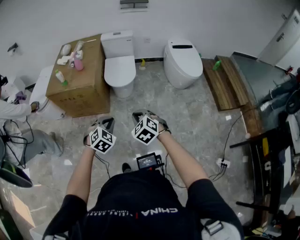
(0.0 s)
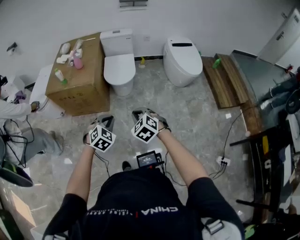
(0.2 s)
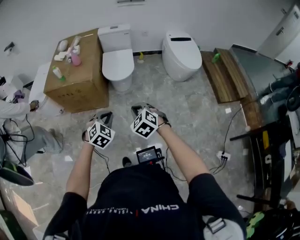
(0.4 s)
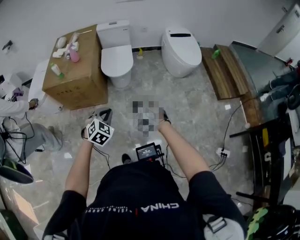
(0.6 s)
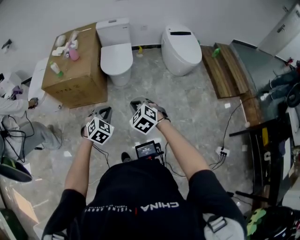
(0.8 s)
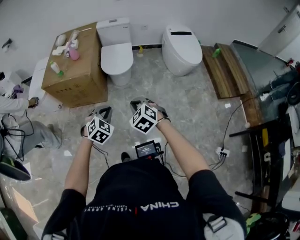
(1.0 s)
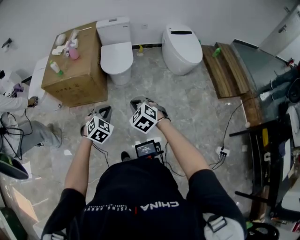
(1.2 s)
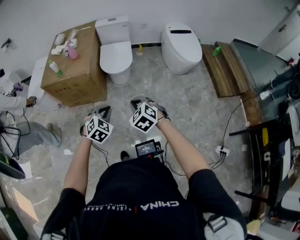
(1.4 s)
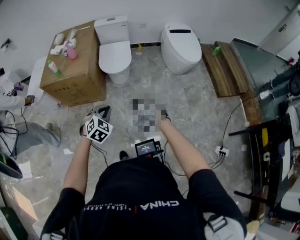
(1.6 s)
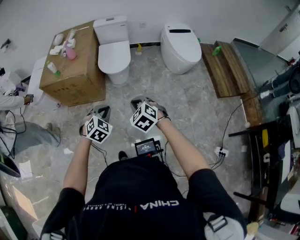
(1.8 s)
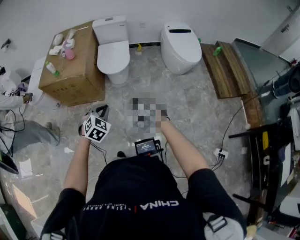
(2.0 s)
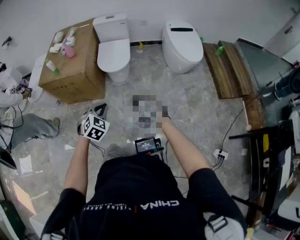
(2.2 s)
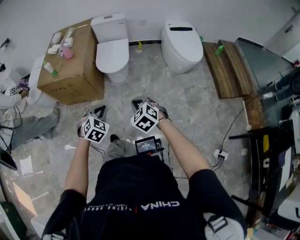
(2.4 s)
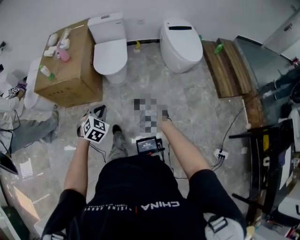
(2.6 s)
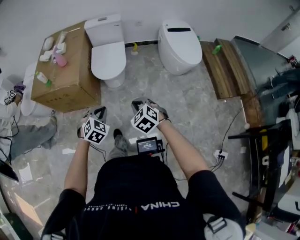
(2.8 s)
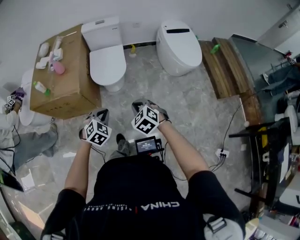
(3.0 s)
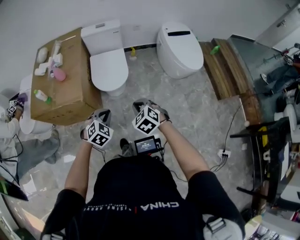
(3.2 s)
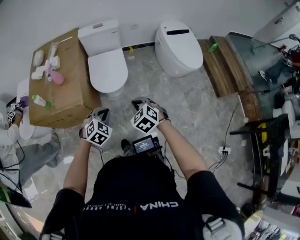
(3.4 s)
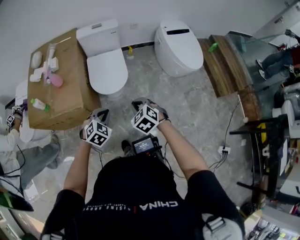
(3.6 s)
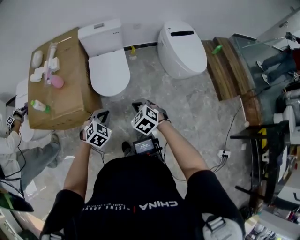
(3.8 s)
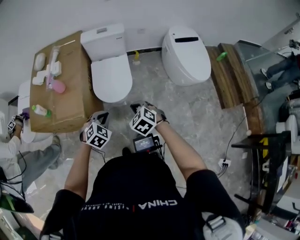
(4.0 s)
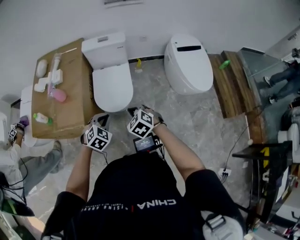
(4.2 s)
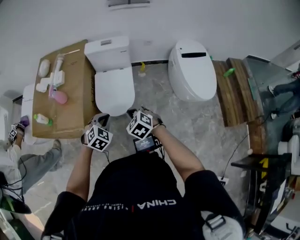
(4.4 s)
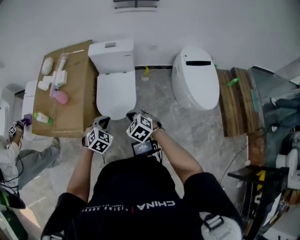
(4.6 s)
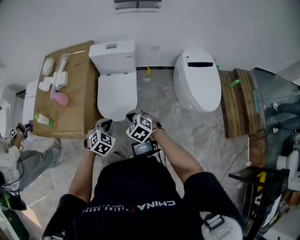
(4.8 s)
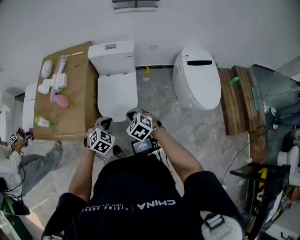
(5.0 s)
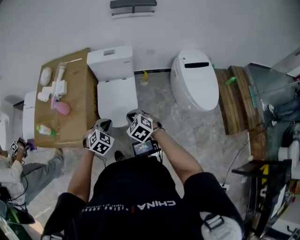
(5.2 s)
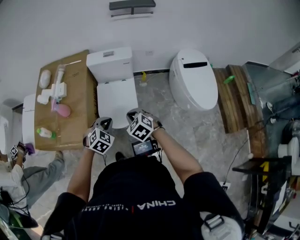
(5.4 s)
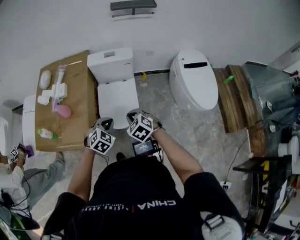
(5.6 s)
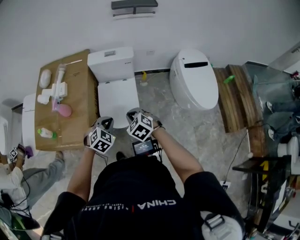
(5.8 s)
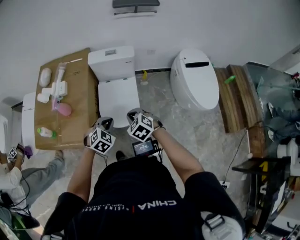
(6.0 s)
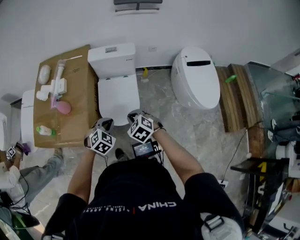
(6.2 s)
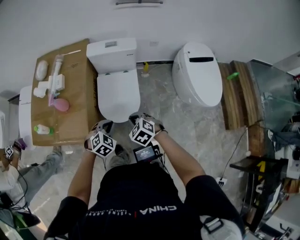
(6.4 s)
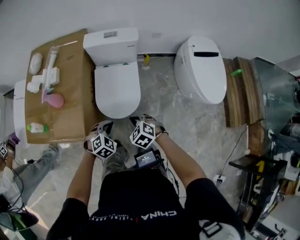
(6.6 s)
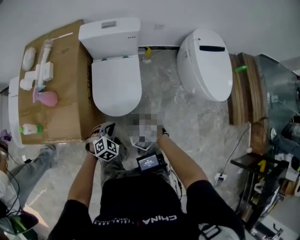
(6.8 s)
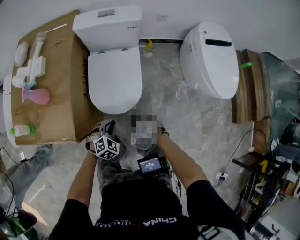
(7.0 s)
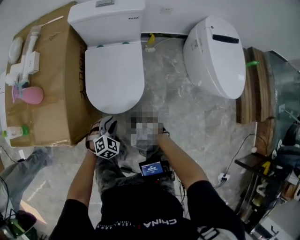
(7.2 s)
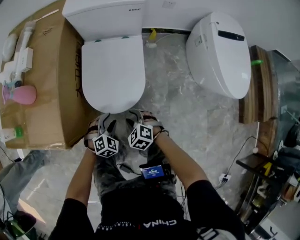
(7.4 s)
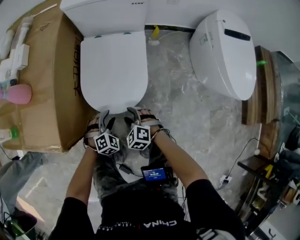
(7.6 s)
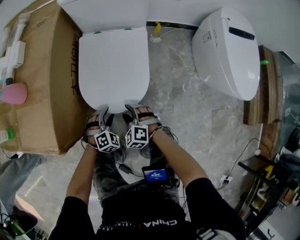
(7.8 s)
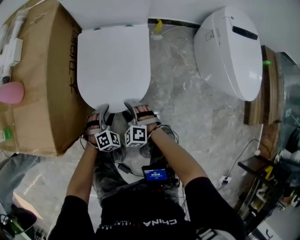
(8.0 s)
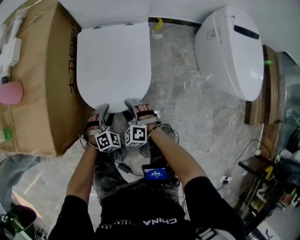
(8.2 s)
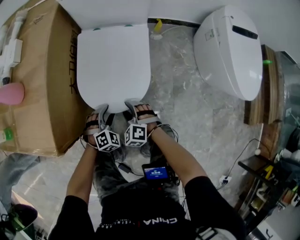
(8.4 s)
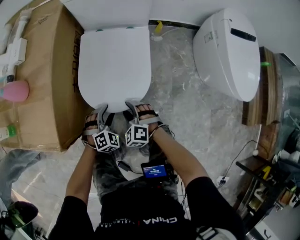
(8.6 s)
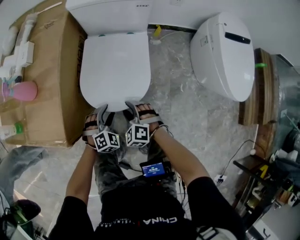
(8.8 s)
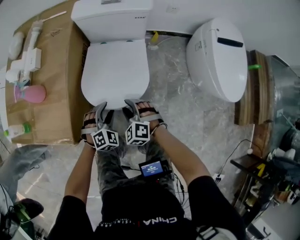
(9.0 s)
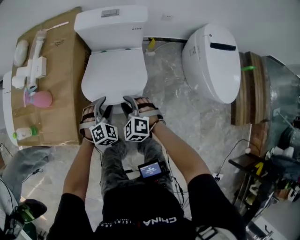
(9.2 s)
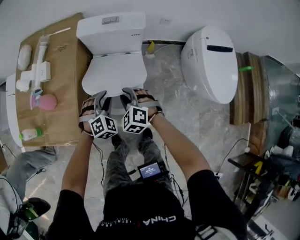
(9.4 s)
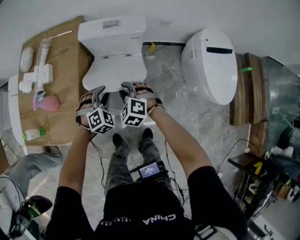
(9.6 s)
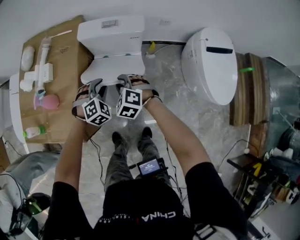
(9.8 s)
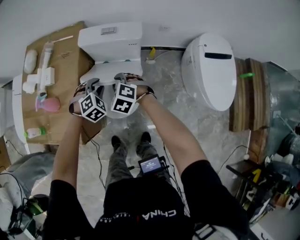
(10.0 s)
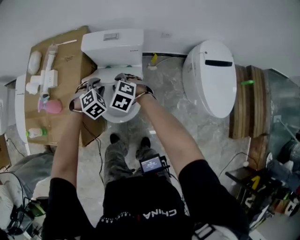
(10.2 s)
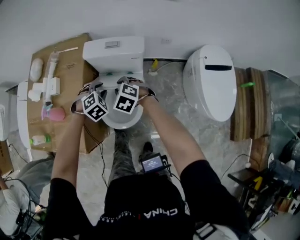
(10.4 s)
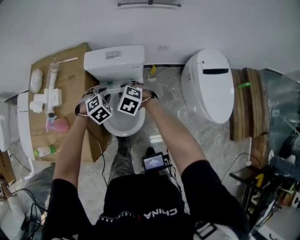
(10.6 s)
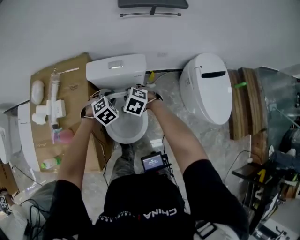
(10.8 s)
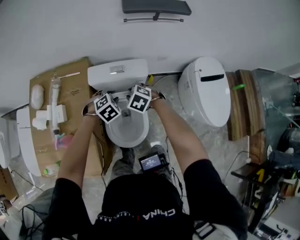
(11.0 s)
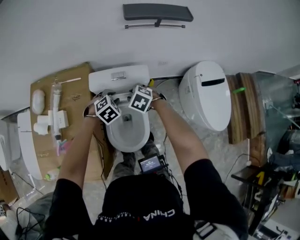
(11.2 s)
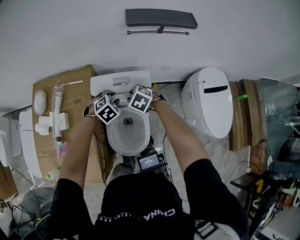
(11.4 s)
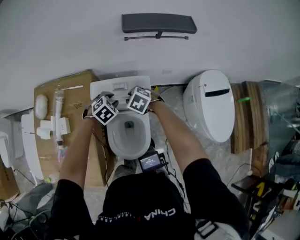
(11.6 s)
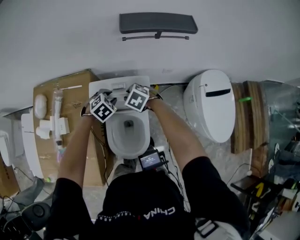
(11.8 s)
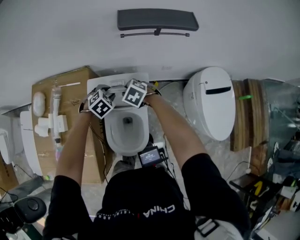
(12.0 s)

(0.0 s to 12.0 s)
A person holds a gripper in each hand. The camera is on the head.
0.0 s - 1.6 s: The grippers move only a little.
1.6 s - 3.0 s: The grippers both shift forward by some 20 cm.
3.0 s - 4.4 s: Both grippers travel together forward, about 30 cm.
4.4 s - 6.0 s: Both grippers travel together forward, about 10 cm.
6.0 s - 7.6 s: Both grippers move downward, some 40 cm. The left gripper opens its fingers; the right gripper opens up.
7.6 s - 9.0 s: Both grippers travel together upward, about 15 cm.
9.0 s - 10.4 s: The left gripper moves forward and upward, roughly 30 cm, and closes. The right gripper goes some 30 cm upward and forward.
10.4 s - 12.0 s: Both grippers travel together forward, about 20 cm.

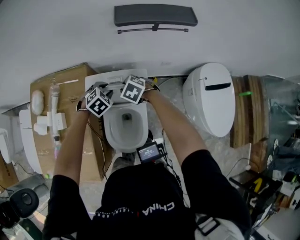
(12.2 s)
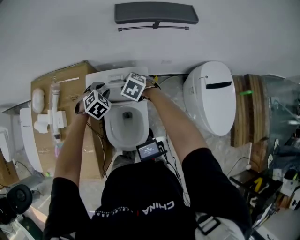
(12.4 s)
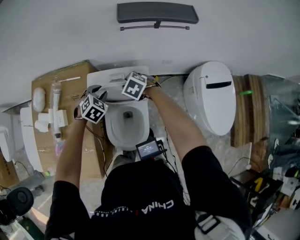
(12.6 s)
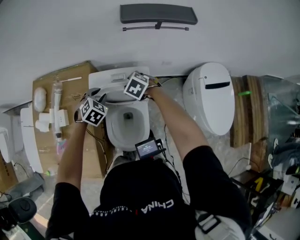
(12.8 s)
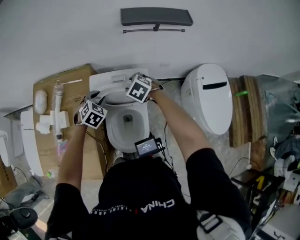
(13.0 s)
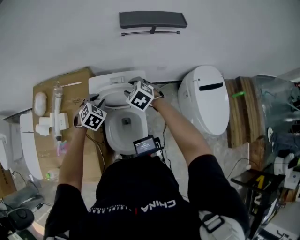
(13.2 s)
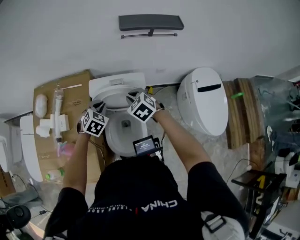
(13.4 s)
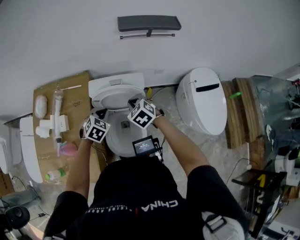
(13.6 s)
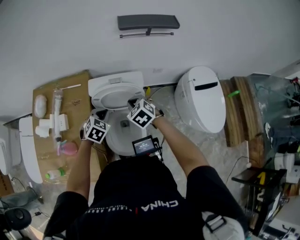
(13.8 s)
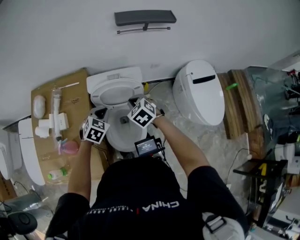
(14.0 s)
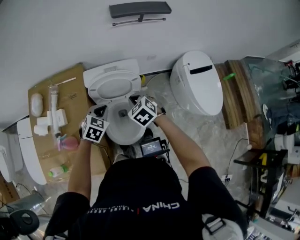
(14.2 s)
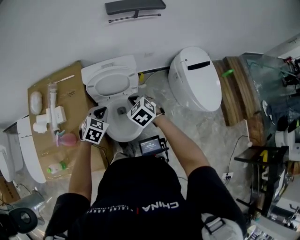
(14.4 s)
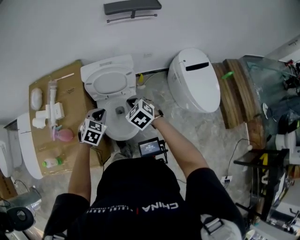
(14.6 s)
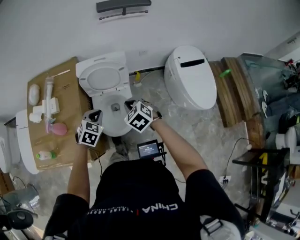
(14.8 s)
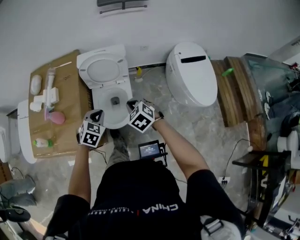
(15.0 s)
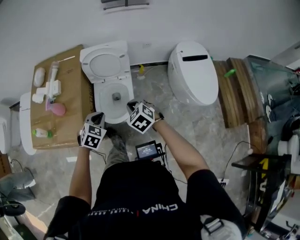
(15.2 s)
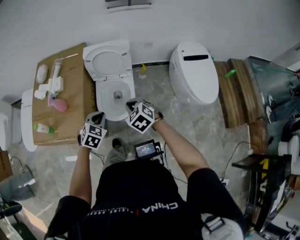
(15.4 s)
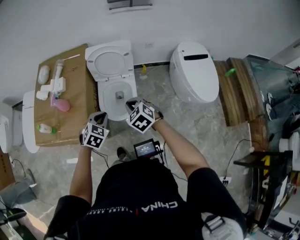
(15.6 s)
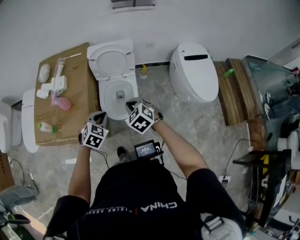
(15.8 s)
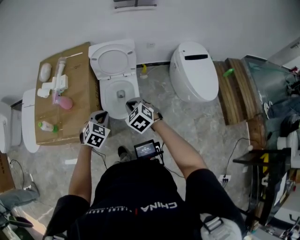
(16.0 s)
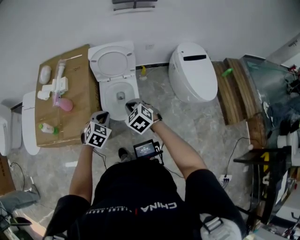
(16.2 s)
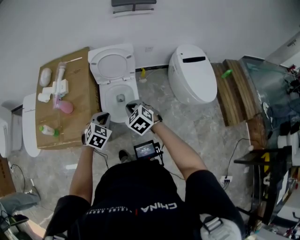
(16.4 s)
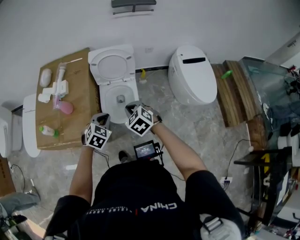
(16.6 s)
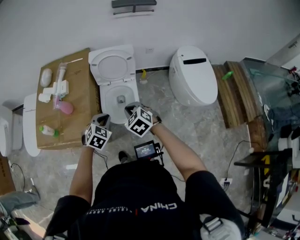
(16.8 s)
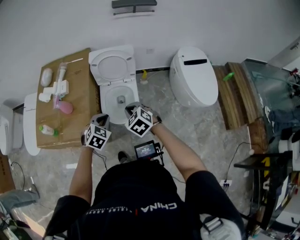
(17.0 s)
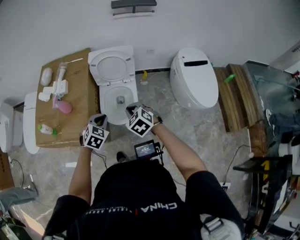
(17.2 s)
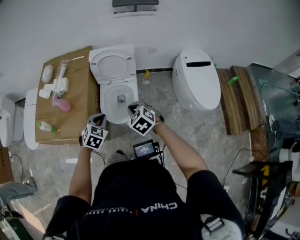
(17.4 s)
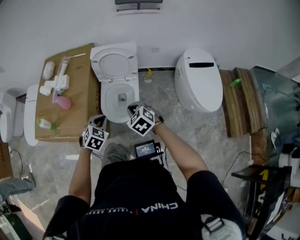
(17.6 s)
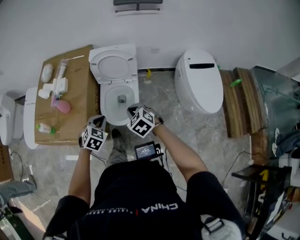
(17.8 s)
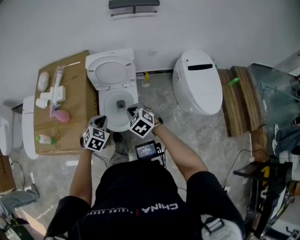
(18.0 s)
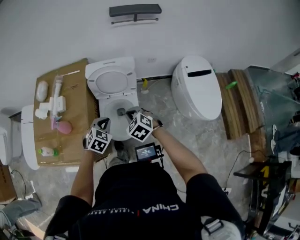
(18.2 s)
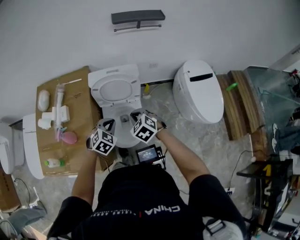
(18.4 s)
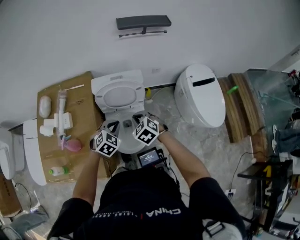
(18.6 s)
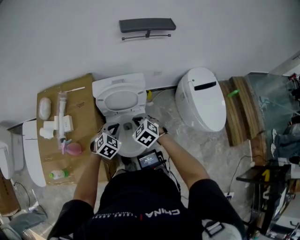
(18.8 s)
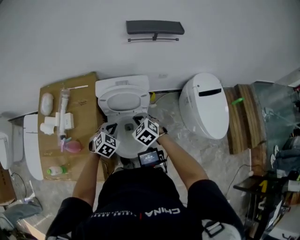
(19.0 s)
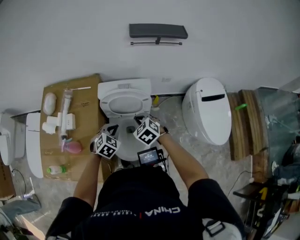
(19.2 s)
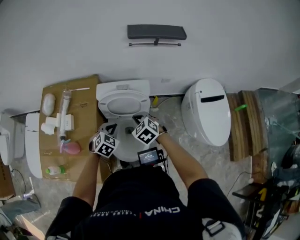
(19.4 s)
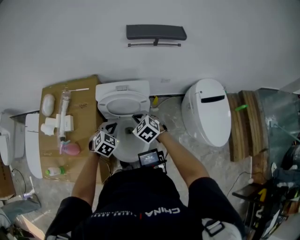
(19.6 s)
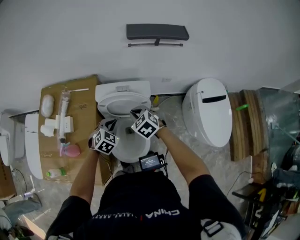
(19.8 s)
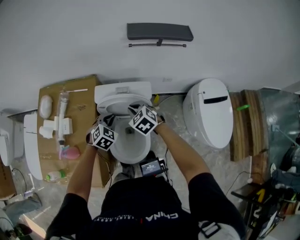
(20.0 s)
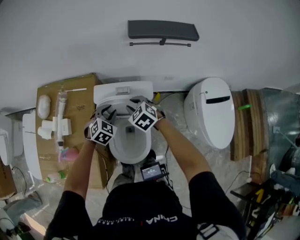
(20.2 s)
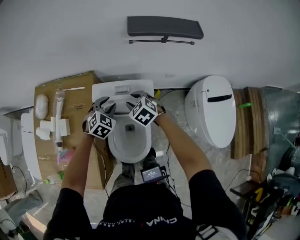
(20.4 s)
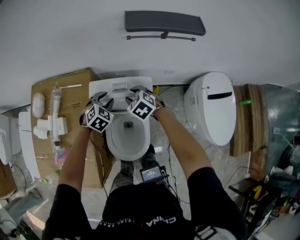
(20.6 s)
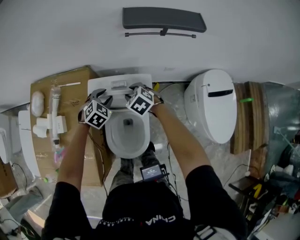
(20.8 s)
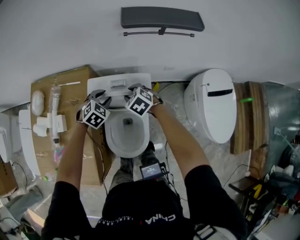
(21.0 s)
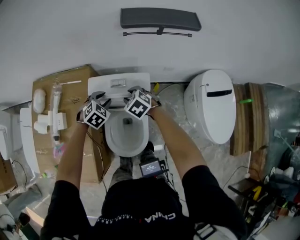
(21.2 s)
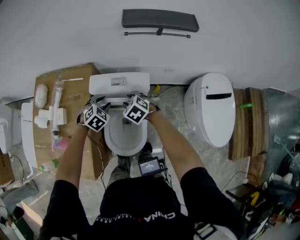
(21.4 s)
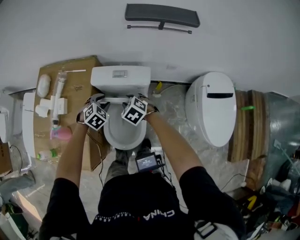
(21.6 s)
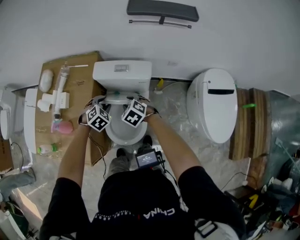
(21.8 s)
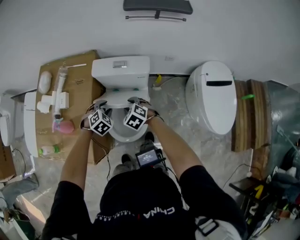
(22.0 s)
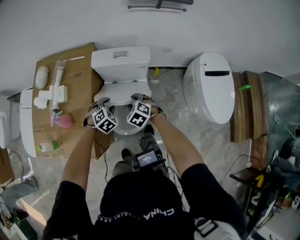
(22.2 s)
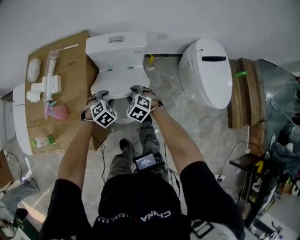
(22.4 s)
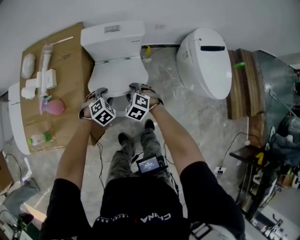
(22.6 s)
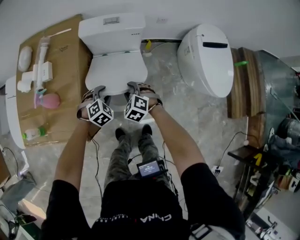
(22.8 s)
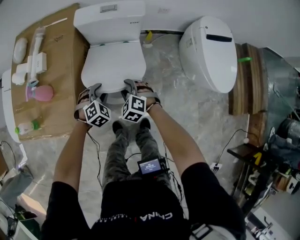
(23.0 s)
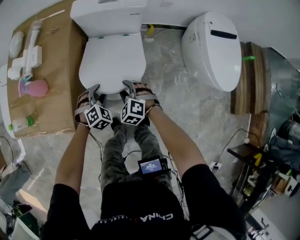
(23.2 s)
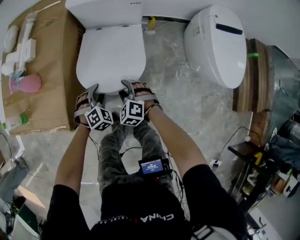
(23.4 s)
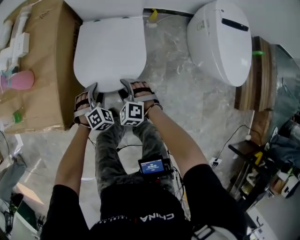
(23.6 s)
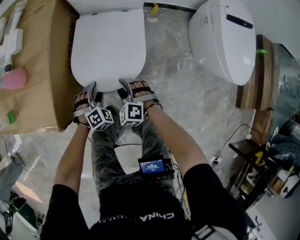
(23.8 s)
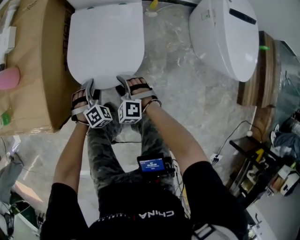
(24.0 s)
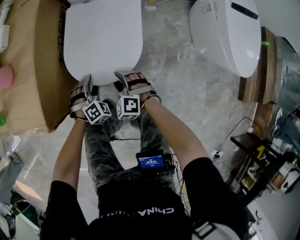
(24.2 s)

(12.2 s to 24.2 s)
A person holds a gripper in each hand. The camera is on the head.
12.2 s - 13.8 s: The left gripper travels backward and to the left by some 15 cm, and closes up; the right gripper shifts some 15 cm backward and upward, turns by about 20 degrees, and closes up.
13.8 s - 15.2 s: The grippers both shift backward by some 30 cm.
15.2 s - 16.6 s: The left gripper changes place by approximately 5 cm; the right gripper shifts roughly 10 cm to the left.
16.6 s - 18.2 s: The two grippers go approximately 15 cm forward.
18.2 s - 19.8 s: Both grippers travel together forward, approximately 20 cm.
19.8 s - 21.2 s: The right gripper shifts approximately 10 cm forward and downward, and opens. The left gripper travels forward by some 15 cm, and opens up.
21.2 s - 22.6 s: The two grippers go some 30 cm backward.
22.6 s - 24.2 s: Both grippers travel together downward and backward, approximately 30 cm. The left gripper changes its angle by some 20 degrees.
